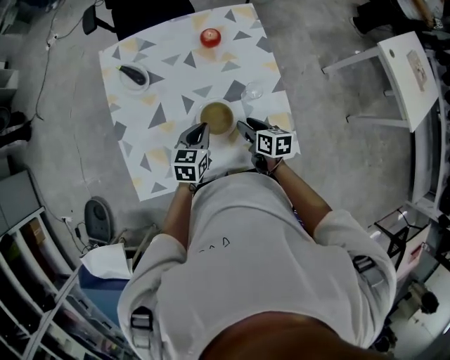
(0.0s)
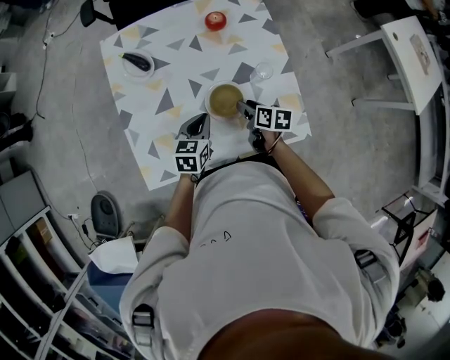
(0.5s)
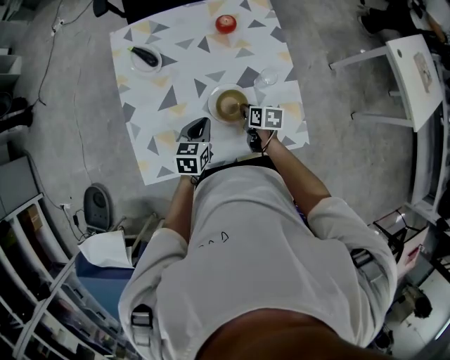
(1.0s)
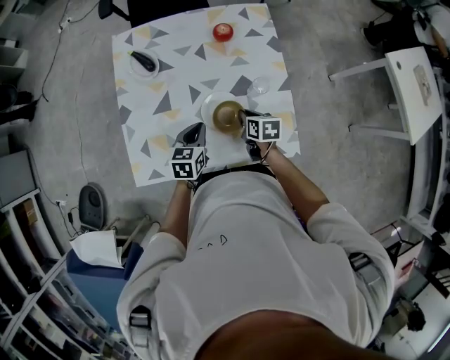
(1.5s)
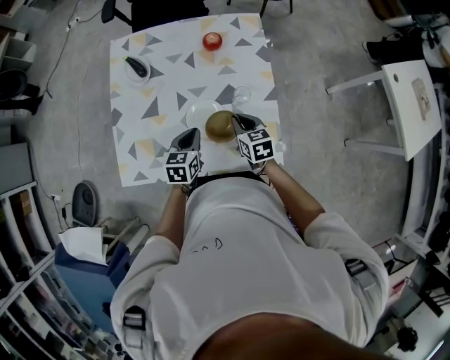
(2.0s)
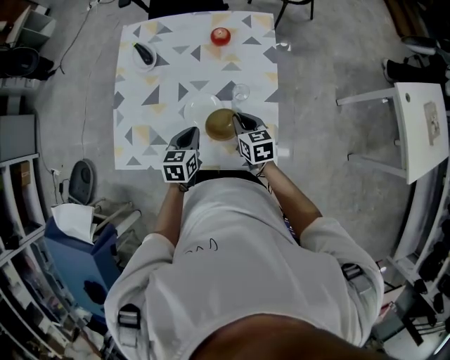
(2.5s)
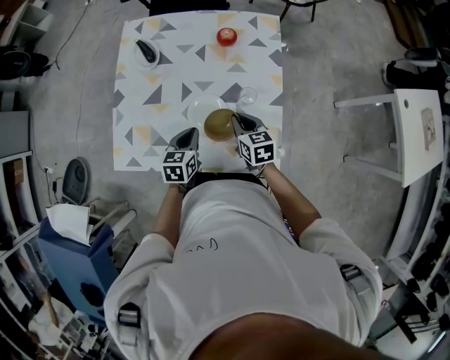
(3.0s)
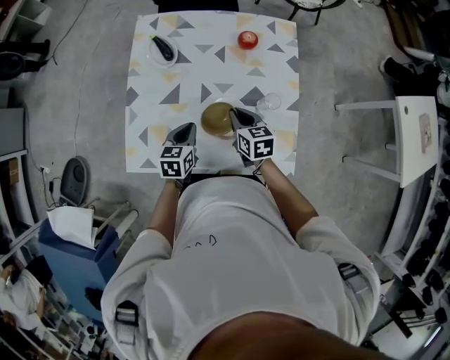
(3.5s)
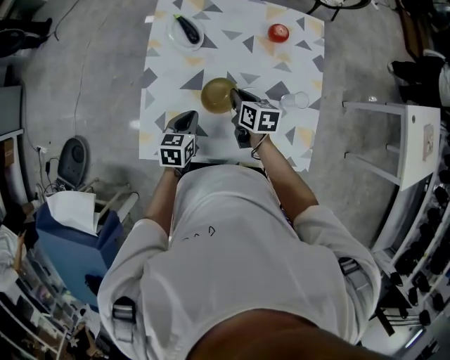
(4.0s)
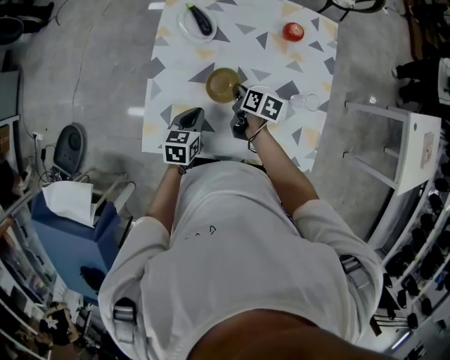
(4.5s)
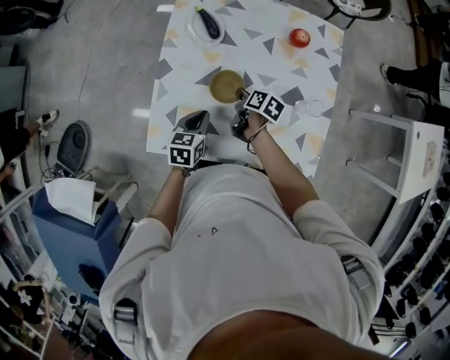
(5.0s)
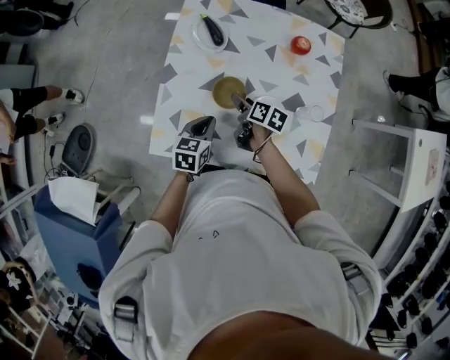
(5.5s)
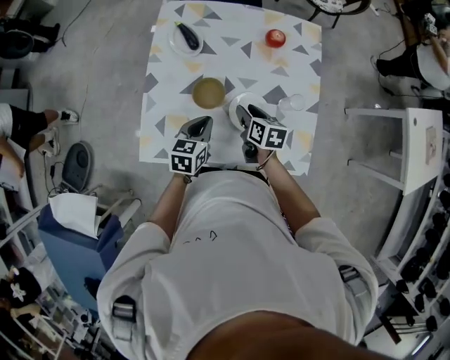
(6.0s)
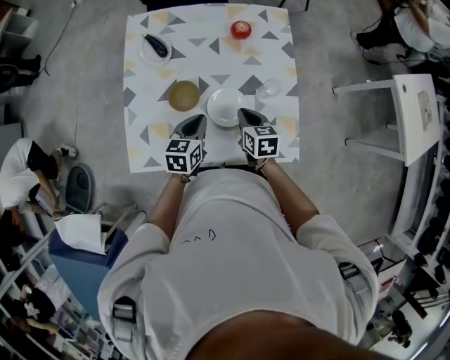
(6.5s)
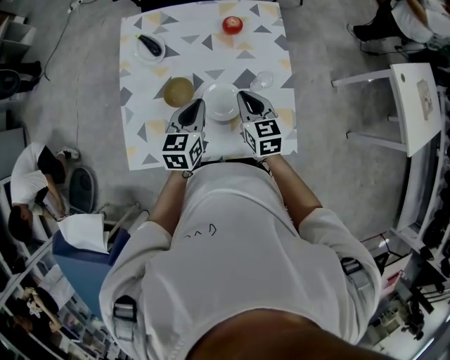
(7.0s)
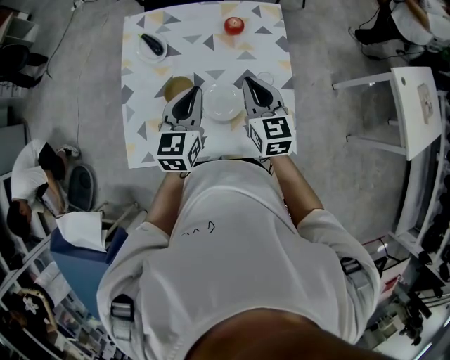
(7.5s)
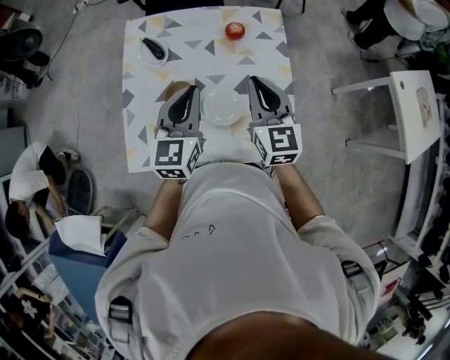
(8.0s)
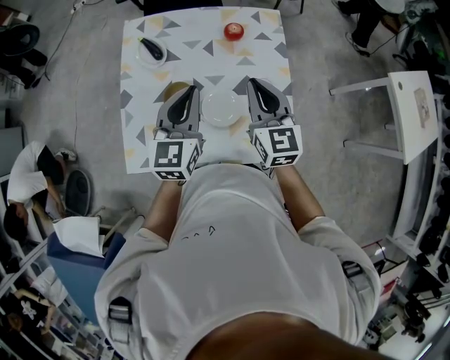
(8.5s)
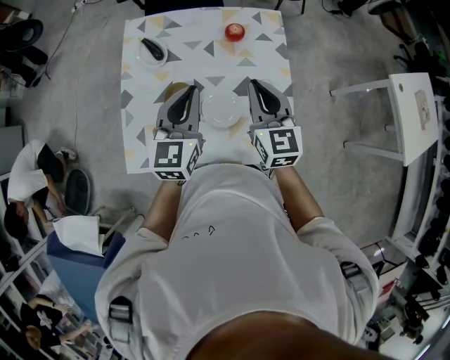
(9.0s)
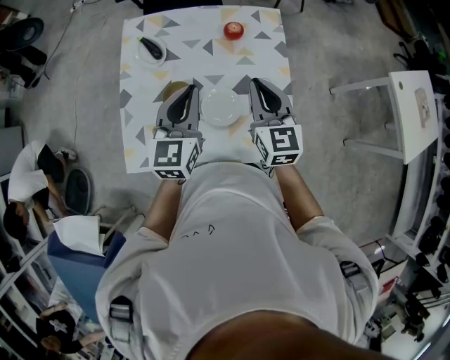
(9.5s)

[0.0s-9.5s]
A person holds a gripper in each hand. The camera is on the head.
0.0s to 2.0s: The right gripper moves about 5 cm, swivels about 30 degrees, and closes.
2.0s to 4.0s: The left gripper goes some 20 cm to the left, while the right gripper heads to the left and forward, covering approximately 20 cm.
4.0s to 5.5s: The right gripper changes place by approximately 5 cm, swivels roughly 20 degrees, and opens up.
5.5s to 7.5s: Both grippers travel together upward and to the right, approximately 25 cm. The left gripper changes its angle by roughly 30 degrees. The right gripper rotates around the line of its fingers by approximately 50 degrees, counterclockwise from behind, and closes up.
7.5s to 9.5s: There are only small adjustments of the grippers.

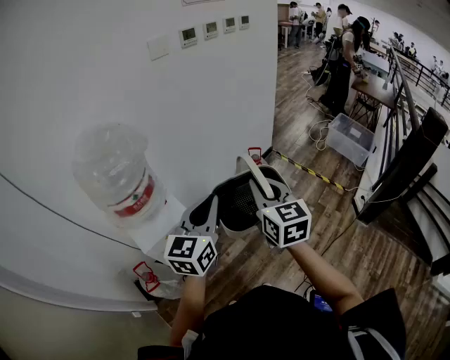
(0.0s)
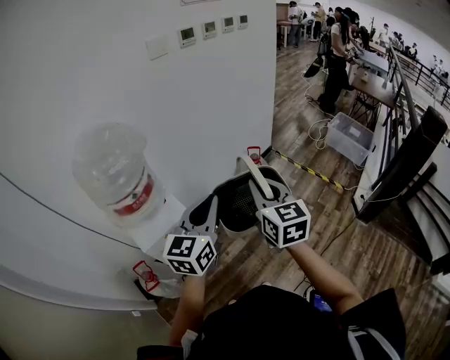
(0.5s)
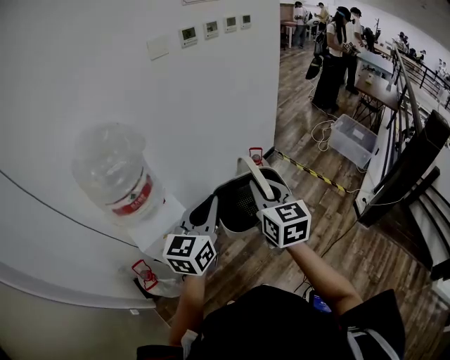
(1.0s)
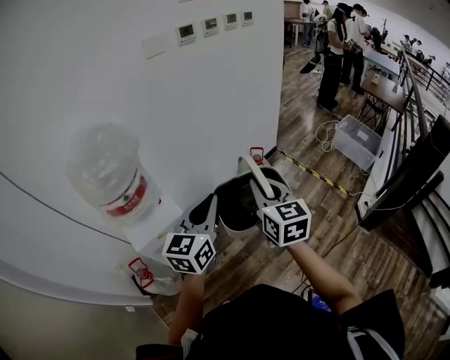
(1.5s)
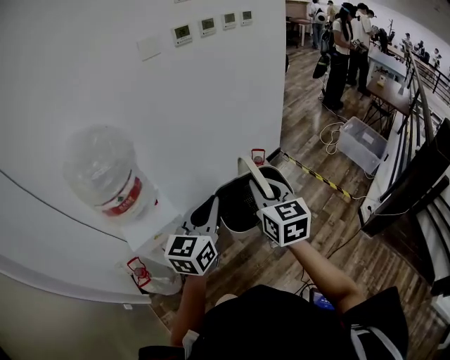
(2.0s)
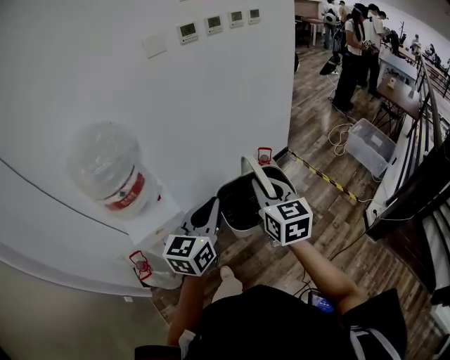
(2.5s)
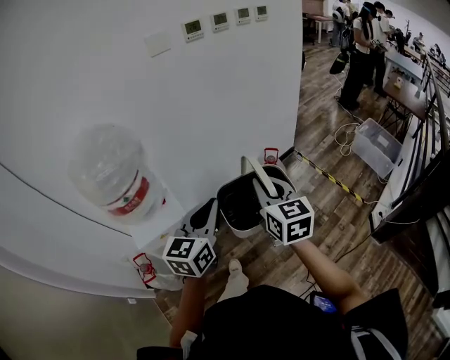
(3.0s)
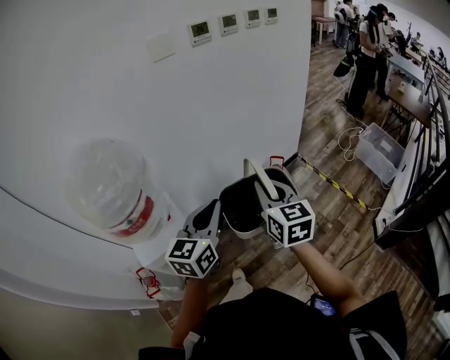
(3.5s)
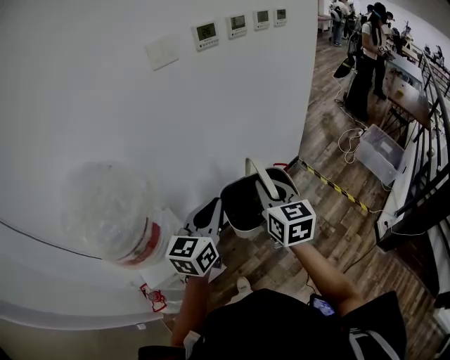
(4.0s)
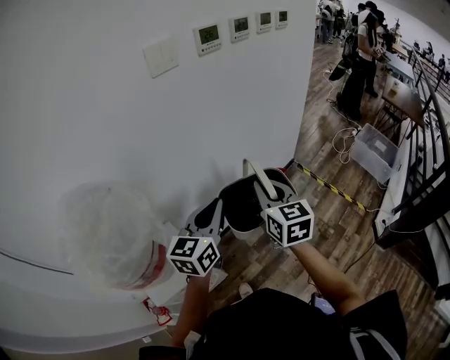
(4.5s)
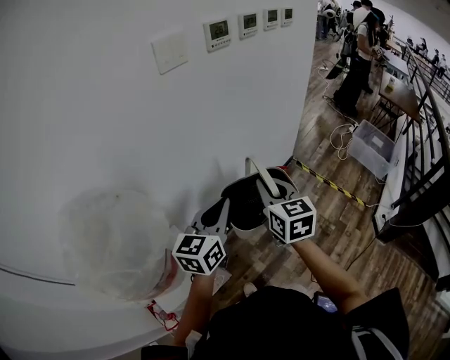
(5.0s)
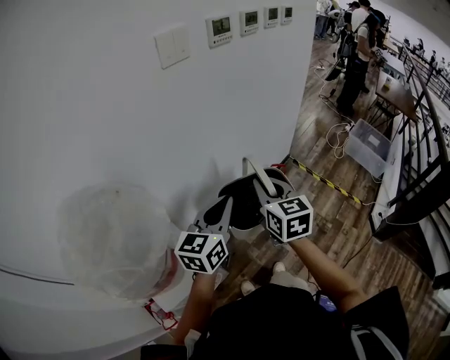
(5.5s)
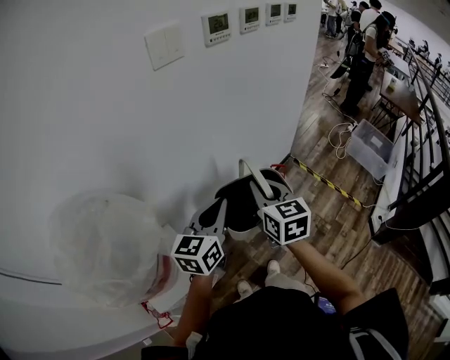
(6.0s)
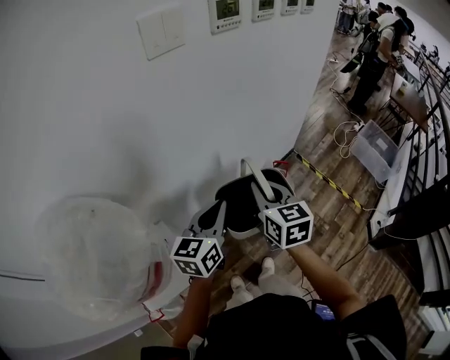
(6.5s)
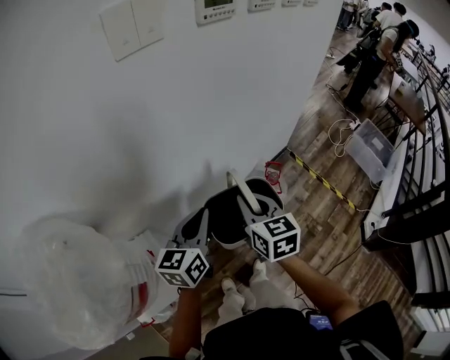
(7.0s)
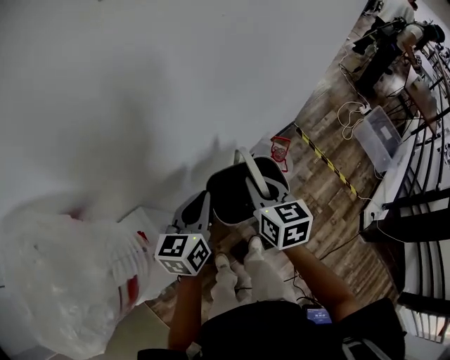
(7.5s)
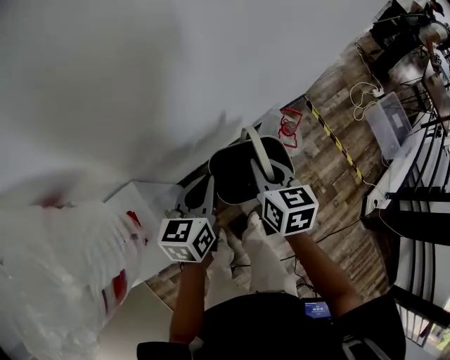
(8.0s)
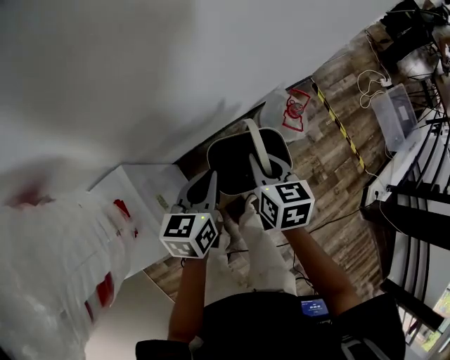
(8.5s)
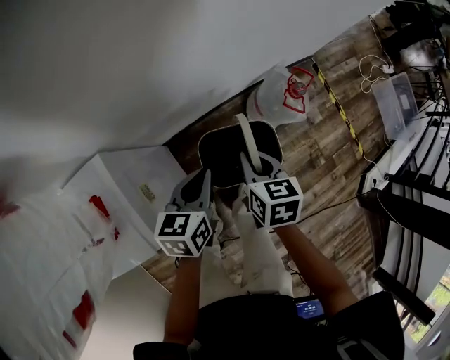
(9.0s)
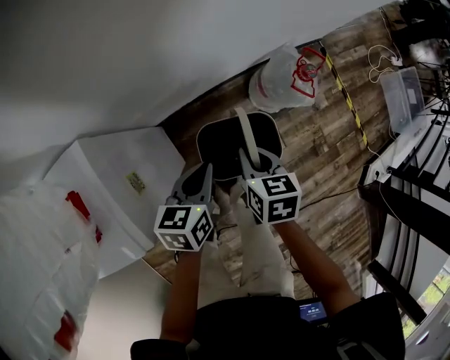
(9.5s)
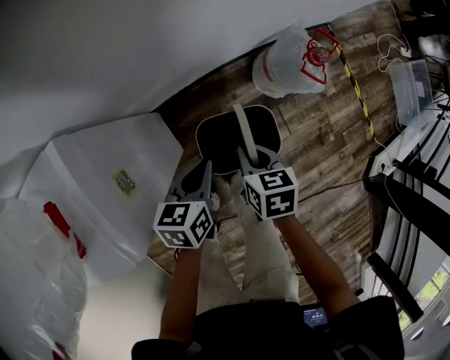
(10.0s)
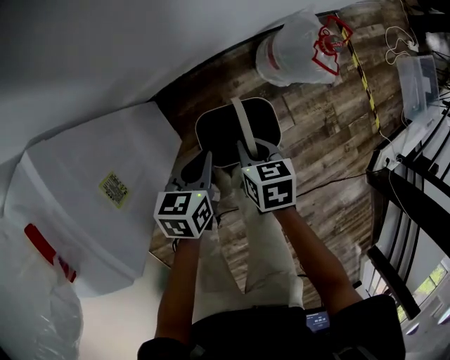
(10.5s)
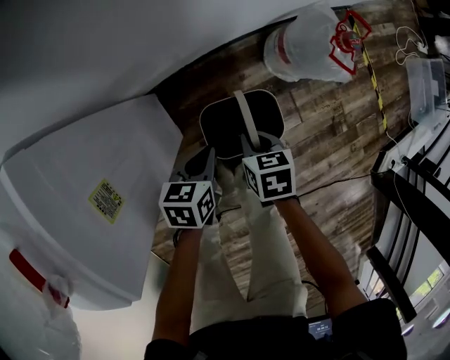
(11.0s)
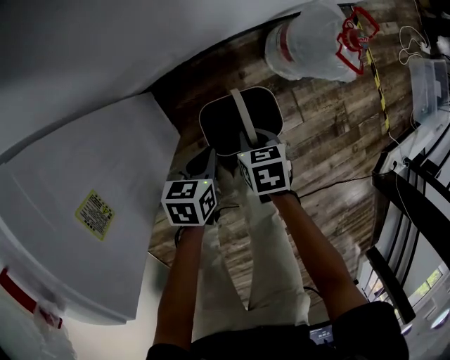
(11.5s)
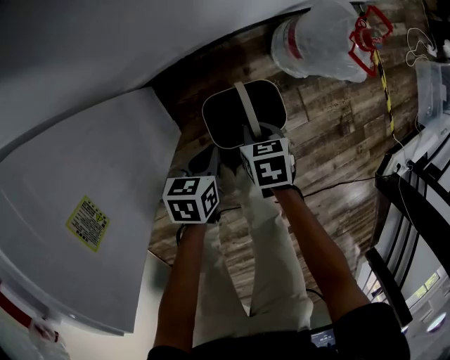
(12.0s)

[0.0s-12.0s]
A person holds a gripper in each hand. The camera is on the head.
0.0s to 2.0s: The grippers both shift to the right by about 5 cm.
2.0s to 4.0s: Both grippers travel together forward and to the left, roughly 20 cm.
4.0s to 6.0s: The right gripper moves forward and to the left, some 10 cm; the left gripper travels forward by roughly 10 cm.
6.0s to 8.0s: The two grippers go approximately 20 cm downward. The left gripper changes its angle by approximately 20 degrees.
8.0s to 10.0s: Both grippers travel together downward, approximately 30 cm. The right gripper swivels approximately 30 degrees; the left gripper changes its angle by about 20 degrees.
10.0s to 12.0s: Both grippers travel together downward, approximately 20 cm.

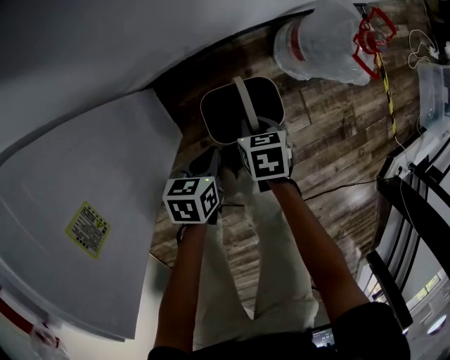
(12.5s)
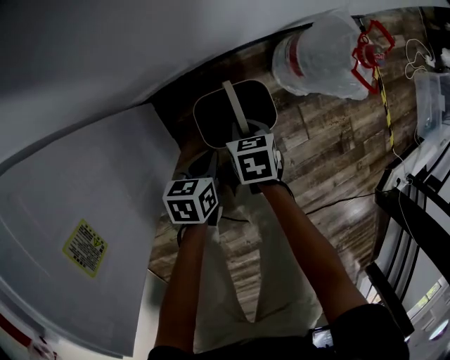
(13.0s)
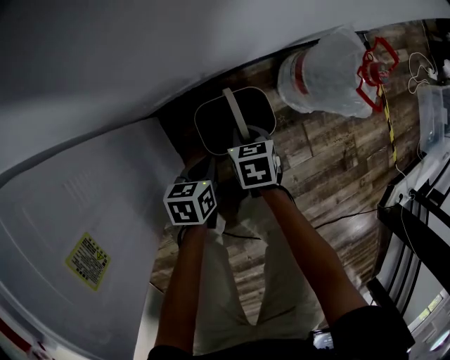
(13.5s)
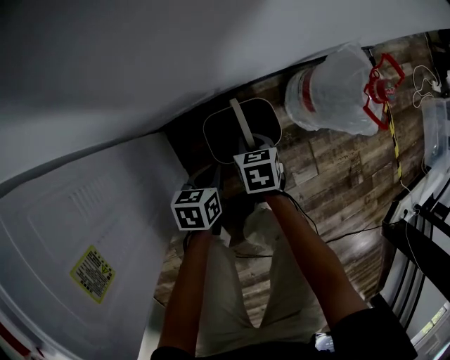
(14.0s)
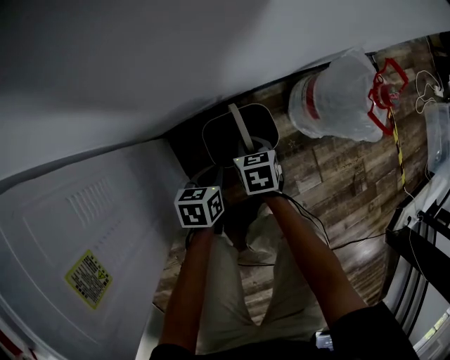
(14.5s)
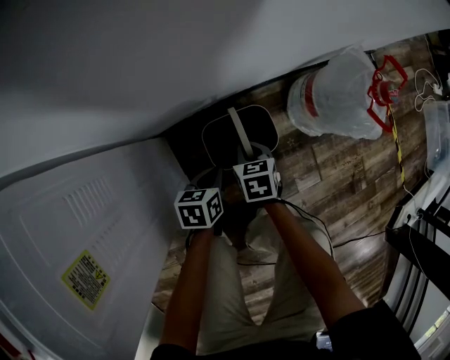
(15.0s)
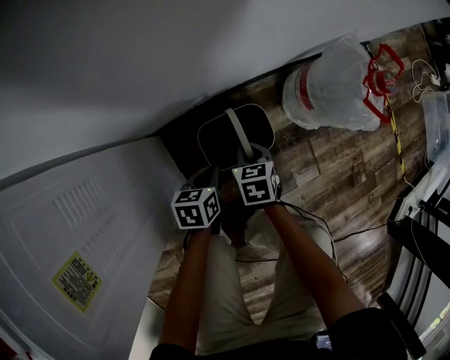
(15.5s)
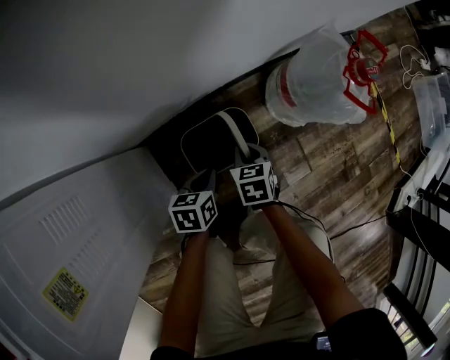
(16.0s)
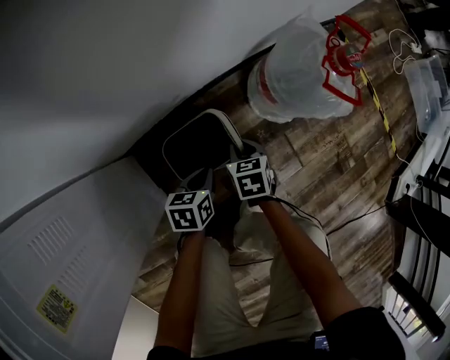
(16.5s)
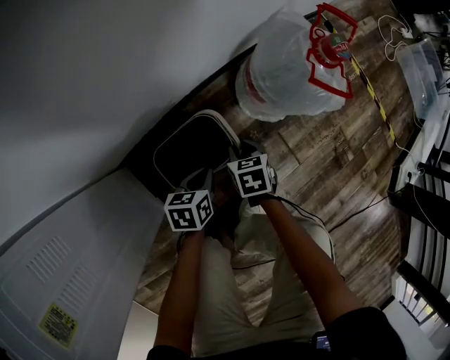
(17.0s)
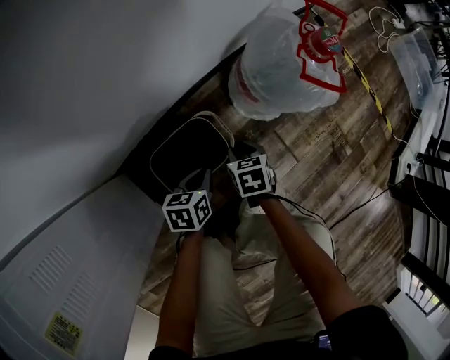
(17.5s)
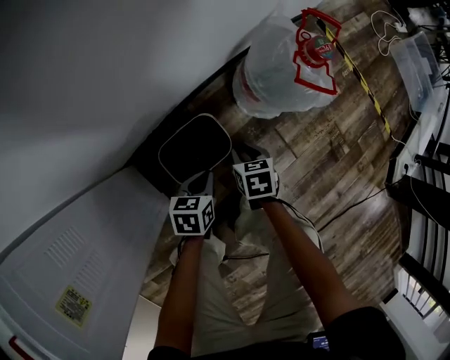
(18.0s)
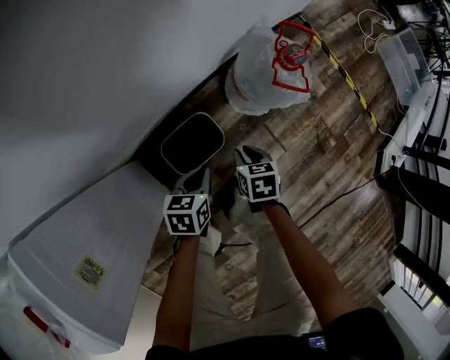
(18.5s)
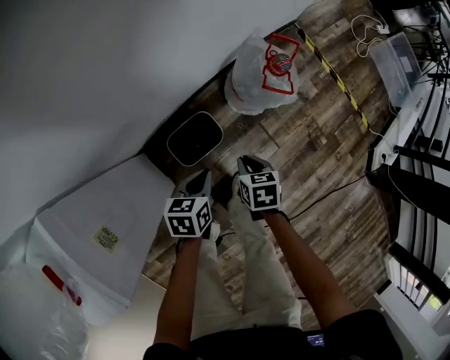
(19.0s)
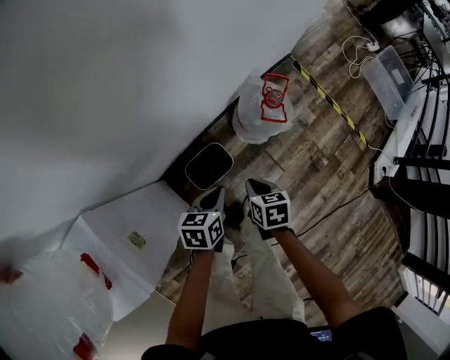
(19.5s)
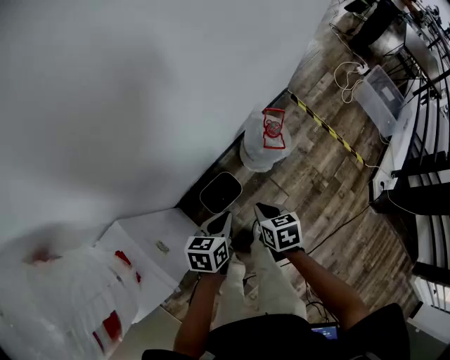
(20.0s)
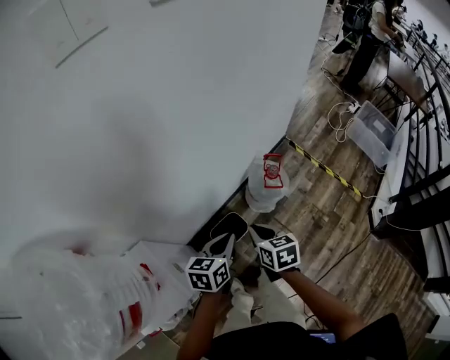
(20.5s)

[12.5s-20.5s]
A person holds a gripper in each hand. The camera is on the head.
12.5s to 14.5s: The left gripper goes roughly 15 cm downward and forward; the right gripper shifts some 10 cm forward and downward.
14.5s to 16.5s: The two grippers go roughly 10 cm to the right.
16.5s to 18.5s: The left gripper heads upward, covering some 15 cm. The right gripper goes about 15 cm upward and to the right.
18.5s to 20.5s: Both grippers move upward, approximately 40 cm. The right gripper changes its angle by some 20 degrees.
